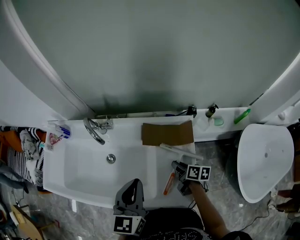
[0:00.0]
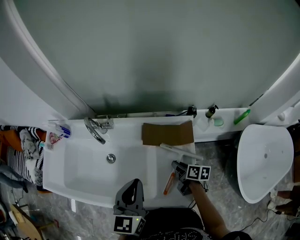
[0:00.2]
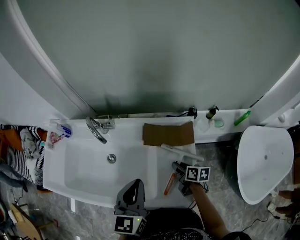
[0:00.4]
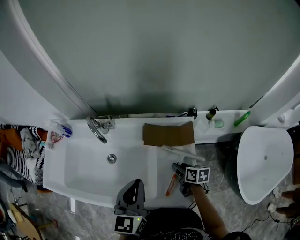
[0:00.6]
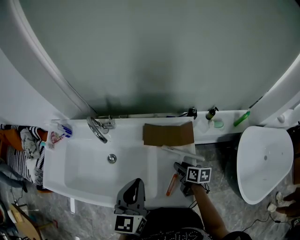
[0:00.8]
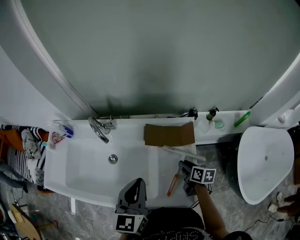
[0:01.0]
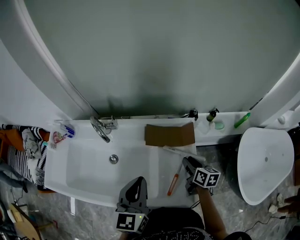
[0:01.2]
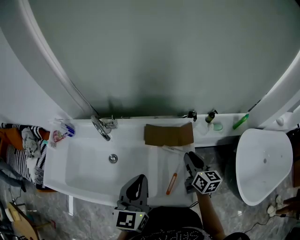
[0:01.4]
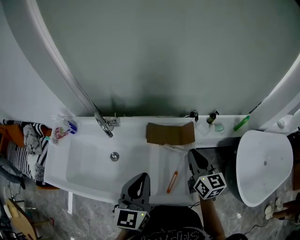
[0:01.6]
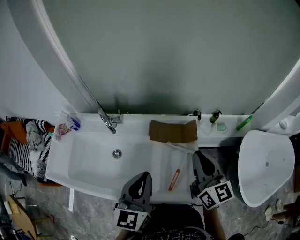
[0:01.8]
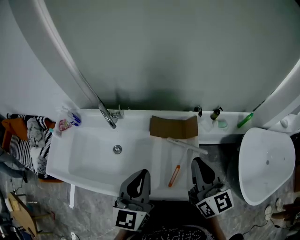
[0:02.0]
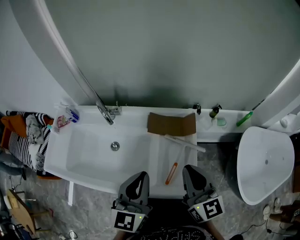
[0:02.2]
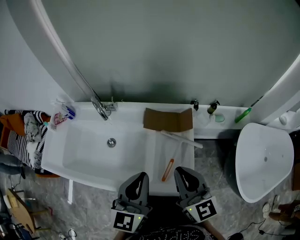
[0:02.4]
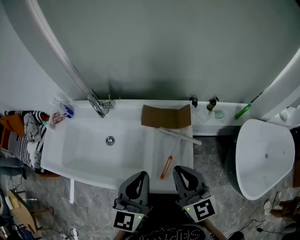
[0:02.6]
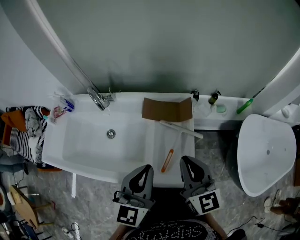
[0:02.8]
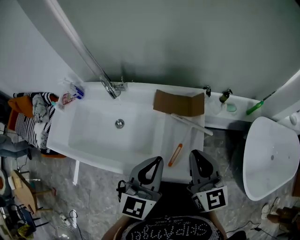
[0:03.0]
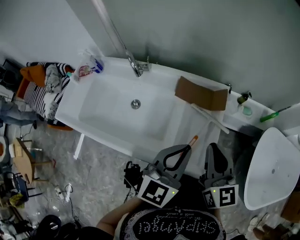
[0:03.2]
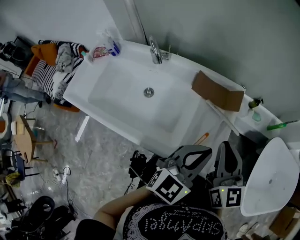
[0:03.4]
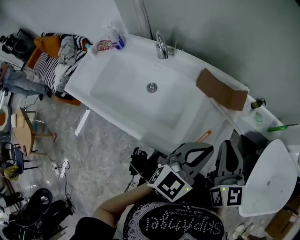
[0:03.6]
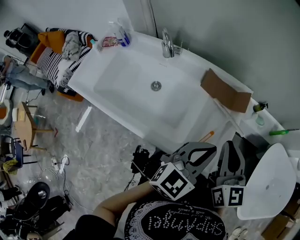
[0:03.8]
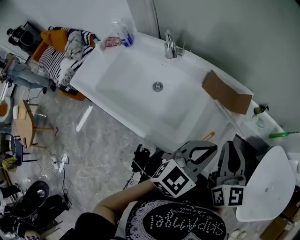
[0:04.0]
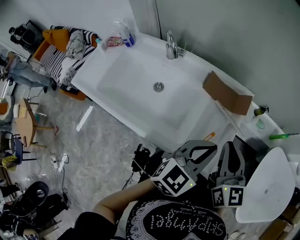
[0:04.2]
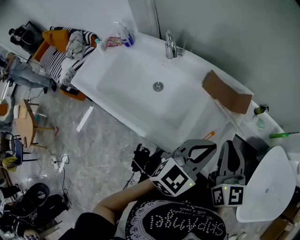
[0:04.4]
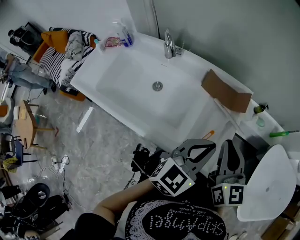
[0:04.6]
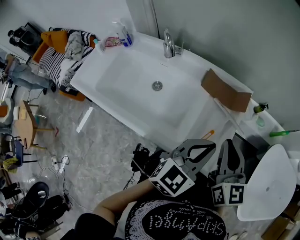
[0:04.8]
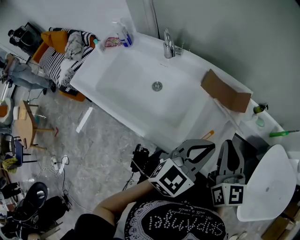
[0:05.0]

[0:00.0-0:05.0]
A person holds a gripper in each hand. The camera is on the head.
0.0 to 1.6 s: The right gripper is displaced upward by about 20 cm, and changes its angle by about 50 degrees.
1.6 to 3.4 s: The right gripper heads backward, covering some 10 cm, while the left gripper moves to the right and backward, roughly 15 cm.
3.4 to 5.0 s: The grippers make only small movements.

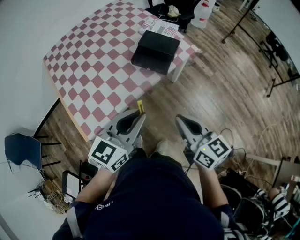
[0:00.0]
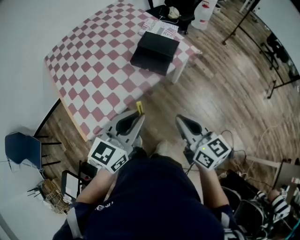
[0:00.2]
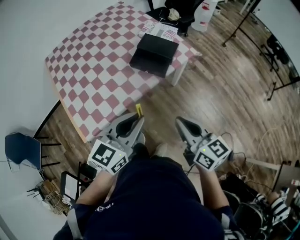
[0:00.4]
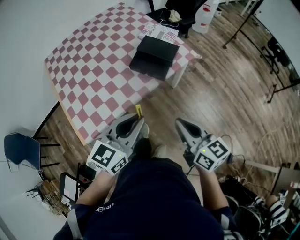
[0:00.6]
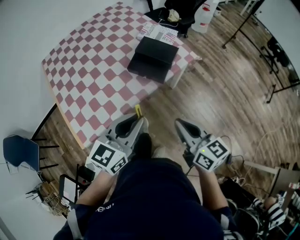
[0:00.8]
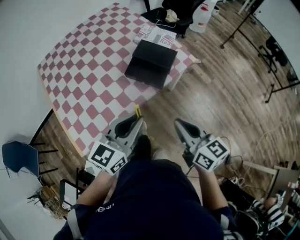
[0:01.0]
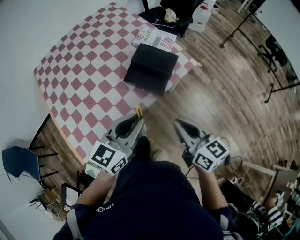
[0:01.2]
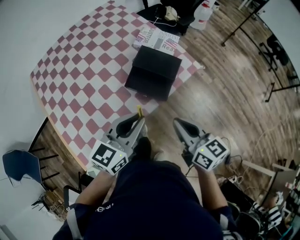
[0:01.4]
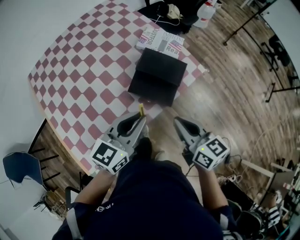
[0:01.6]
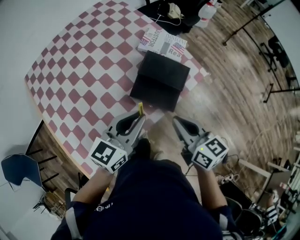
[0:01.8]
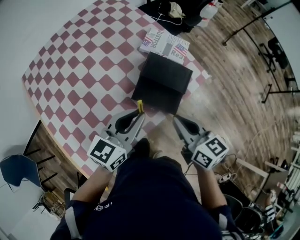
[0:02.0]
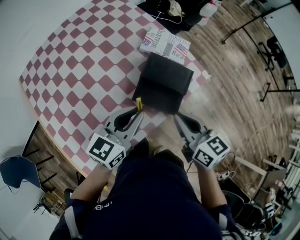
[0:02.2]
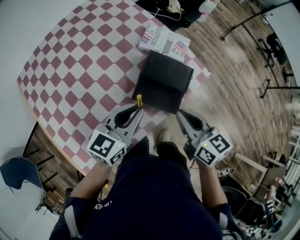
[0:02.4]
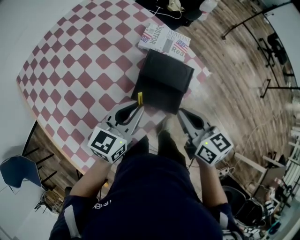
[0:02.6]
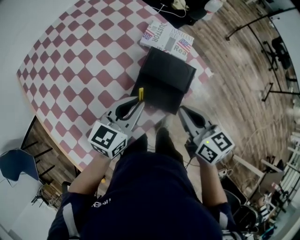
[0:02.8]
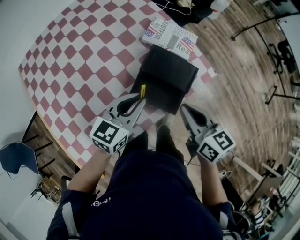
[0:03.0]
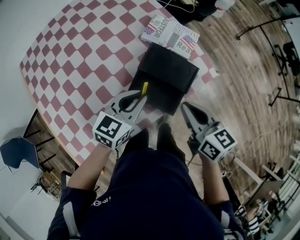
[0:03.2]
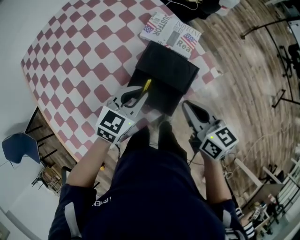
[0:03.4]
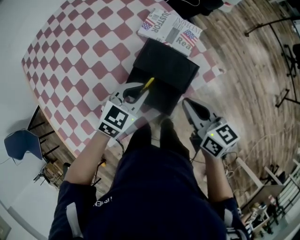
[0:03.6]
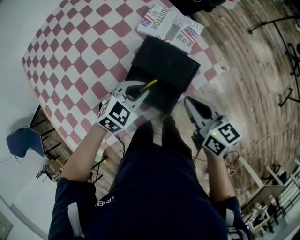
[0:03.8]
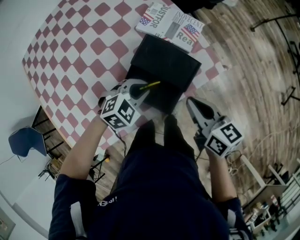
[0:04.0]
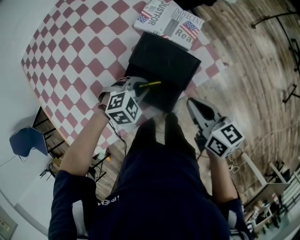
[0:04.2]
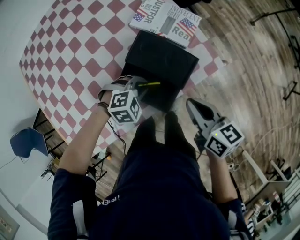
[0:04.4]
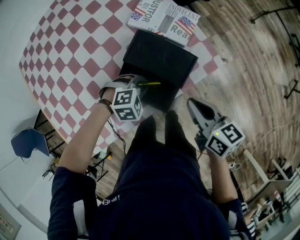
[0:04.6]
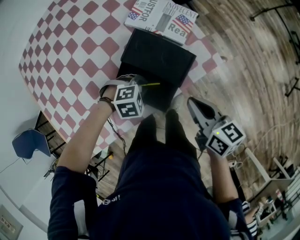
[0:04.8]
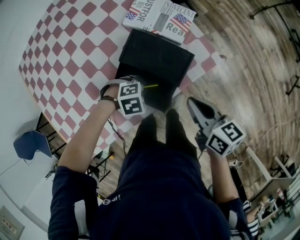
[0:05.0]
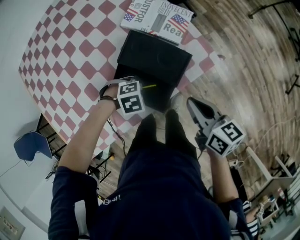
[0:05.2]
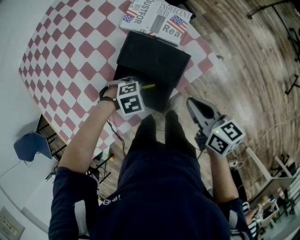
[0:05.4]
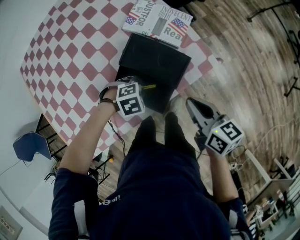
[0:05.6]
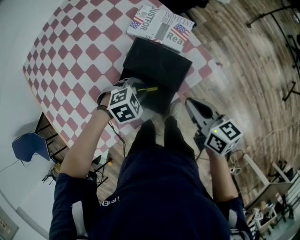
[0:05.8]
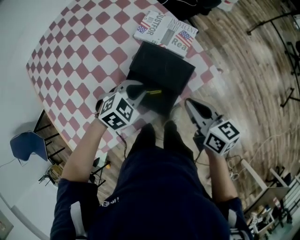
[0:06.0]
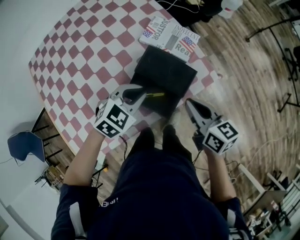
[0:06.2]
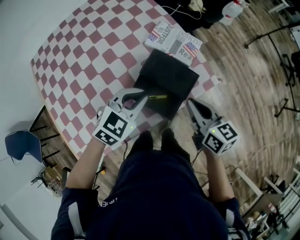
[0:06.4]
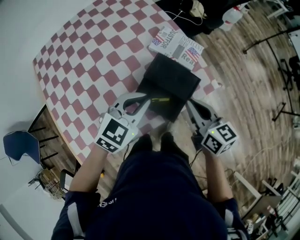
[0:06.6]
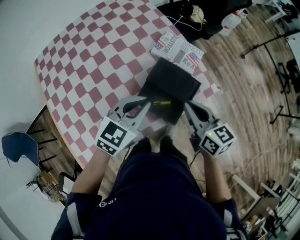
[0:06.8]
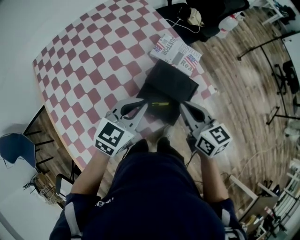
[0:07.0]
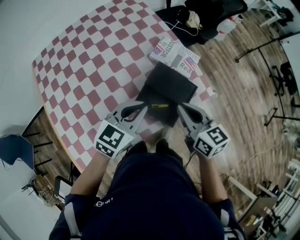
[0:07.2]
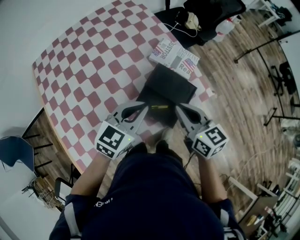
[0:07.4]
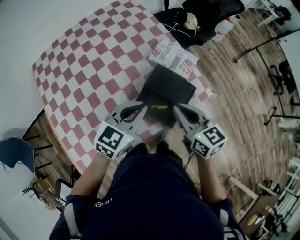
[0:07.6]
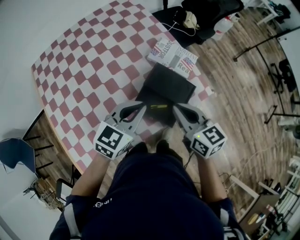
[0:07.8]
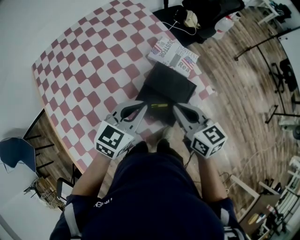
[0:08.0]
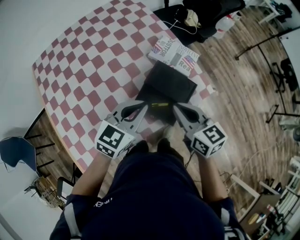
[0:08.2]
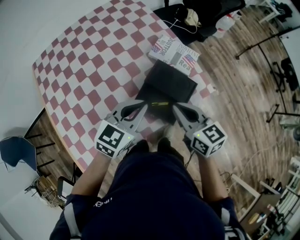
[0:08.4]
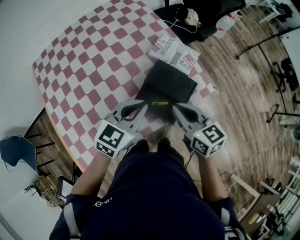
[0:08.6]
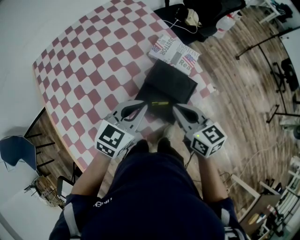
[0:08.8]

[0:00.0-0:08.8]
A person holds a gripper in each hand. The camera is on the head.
0.0 to 1.4 s: Both grippers move forward, about 20 cm.
1.4 to 3.0 s: The left gripper is displaced forward and downward by about 20 cm. The right gripper moves forward, some 15 cm.
3.0 to 4.4 s: The left gripper moves downward, some 20 cm, and tilts its fingers about 40 degrees downward. The right gripper goes some 10 cm downward and to the right.
5.8 to 7.4 s: The left gripper heads upward, covering some 20 cm, tilts its fingers approximately 50 degrees upward, and closes up; the right gripper heads to the left and upward, covering some 15 cm.
7.4 to 8.8 s: The grippers make only small movements.

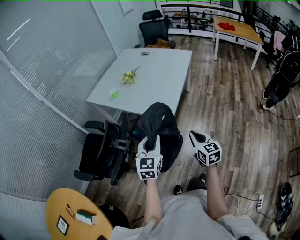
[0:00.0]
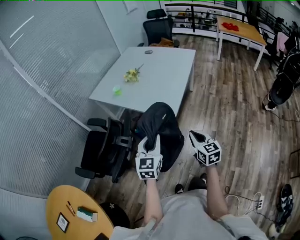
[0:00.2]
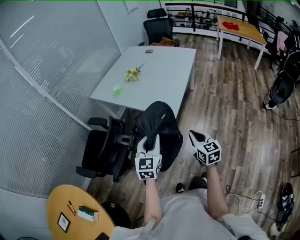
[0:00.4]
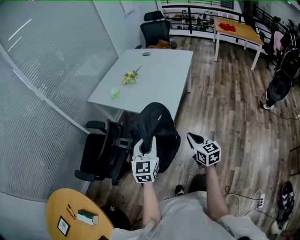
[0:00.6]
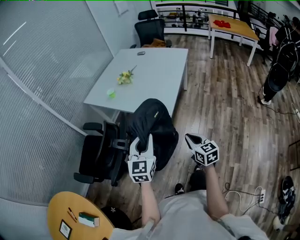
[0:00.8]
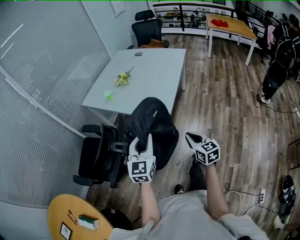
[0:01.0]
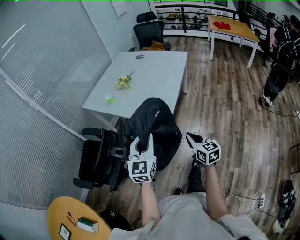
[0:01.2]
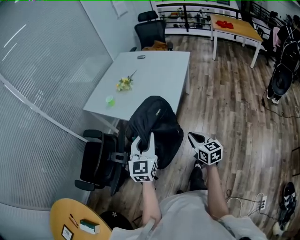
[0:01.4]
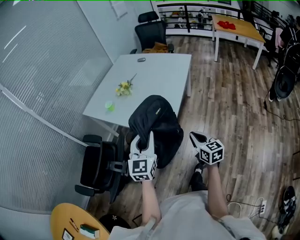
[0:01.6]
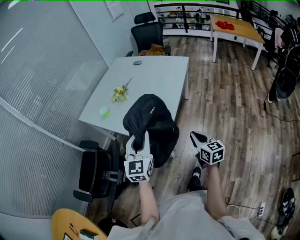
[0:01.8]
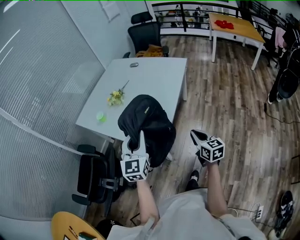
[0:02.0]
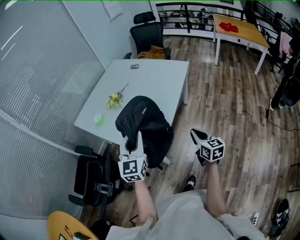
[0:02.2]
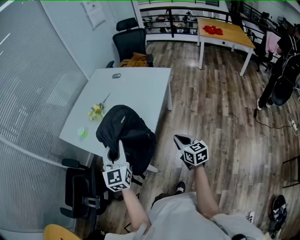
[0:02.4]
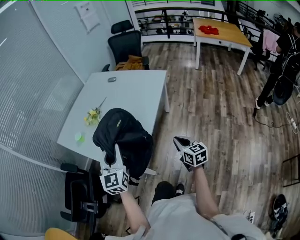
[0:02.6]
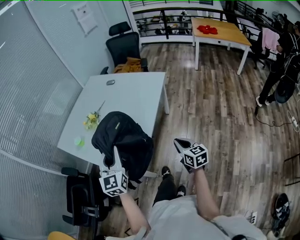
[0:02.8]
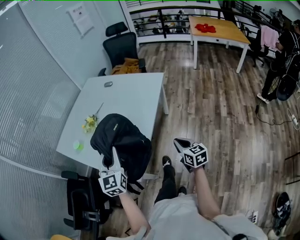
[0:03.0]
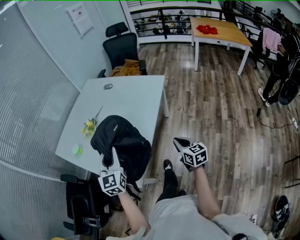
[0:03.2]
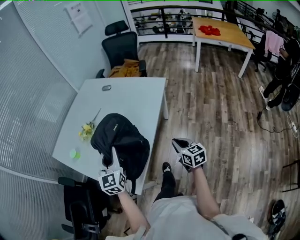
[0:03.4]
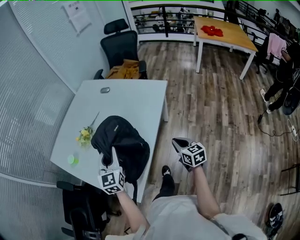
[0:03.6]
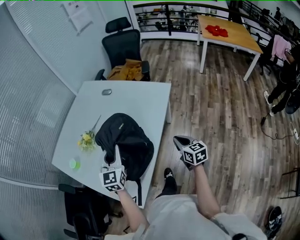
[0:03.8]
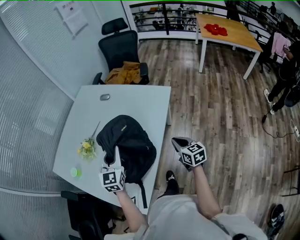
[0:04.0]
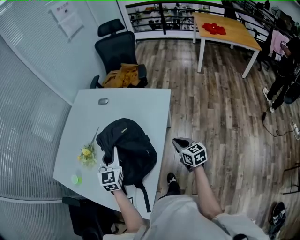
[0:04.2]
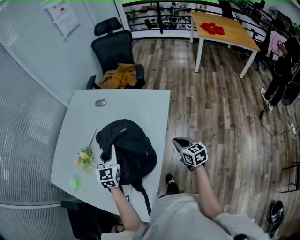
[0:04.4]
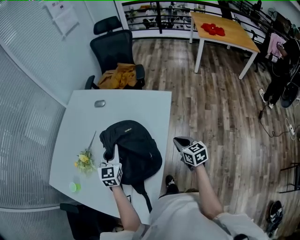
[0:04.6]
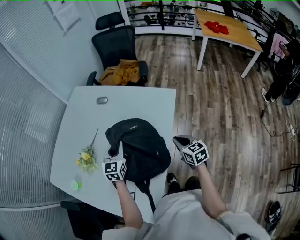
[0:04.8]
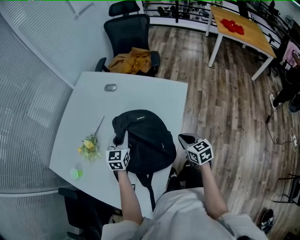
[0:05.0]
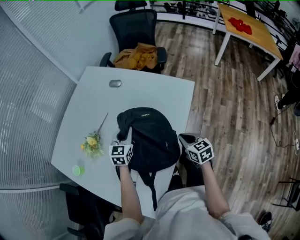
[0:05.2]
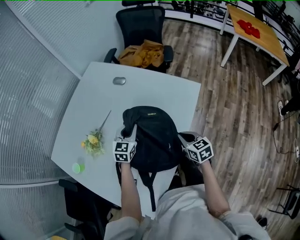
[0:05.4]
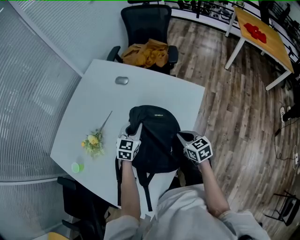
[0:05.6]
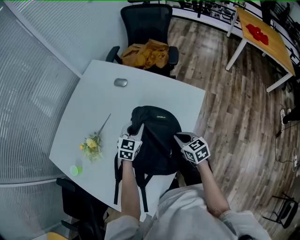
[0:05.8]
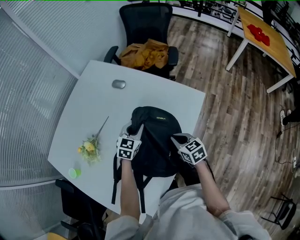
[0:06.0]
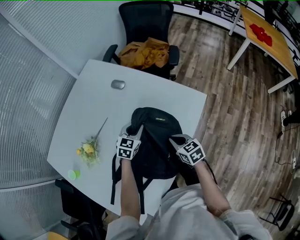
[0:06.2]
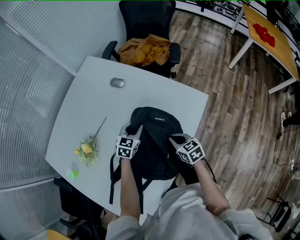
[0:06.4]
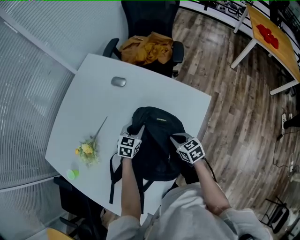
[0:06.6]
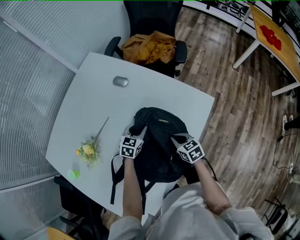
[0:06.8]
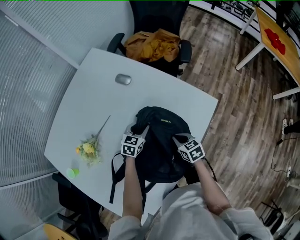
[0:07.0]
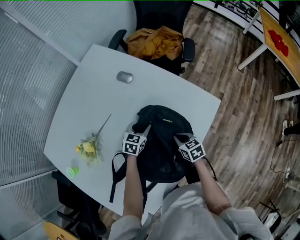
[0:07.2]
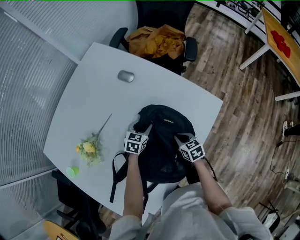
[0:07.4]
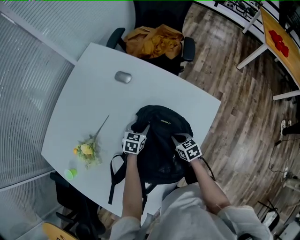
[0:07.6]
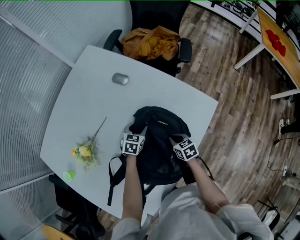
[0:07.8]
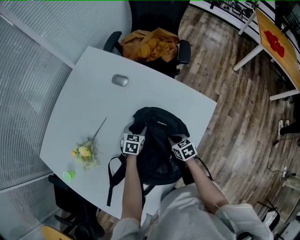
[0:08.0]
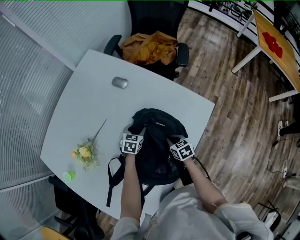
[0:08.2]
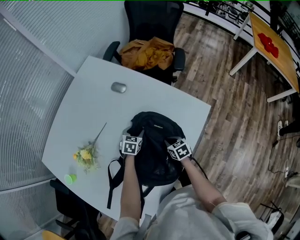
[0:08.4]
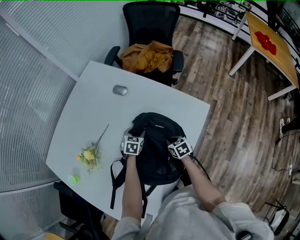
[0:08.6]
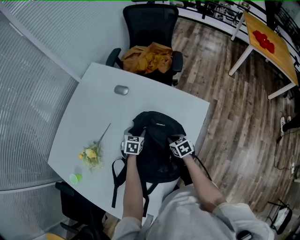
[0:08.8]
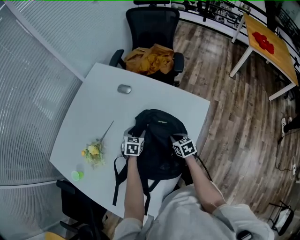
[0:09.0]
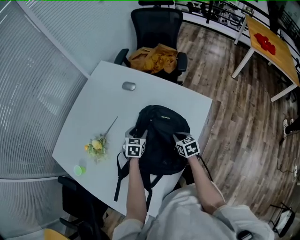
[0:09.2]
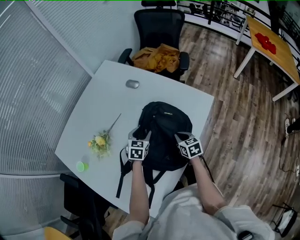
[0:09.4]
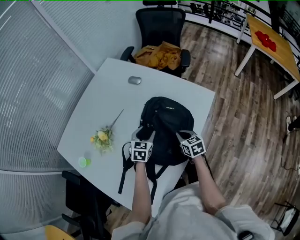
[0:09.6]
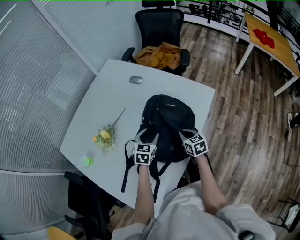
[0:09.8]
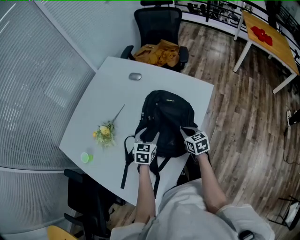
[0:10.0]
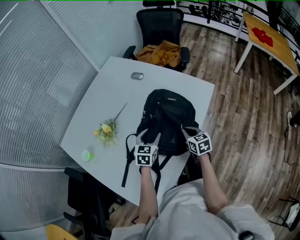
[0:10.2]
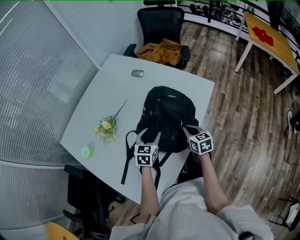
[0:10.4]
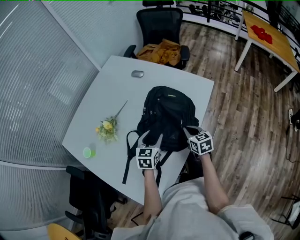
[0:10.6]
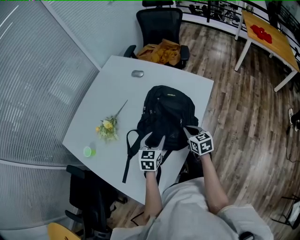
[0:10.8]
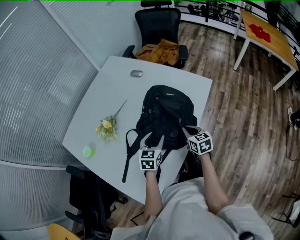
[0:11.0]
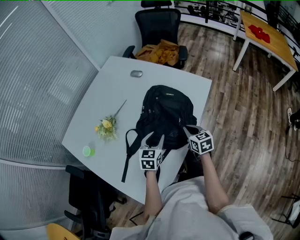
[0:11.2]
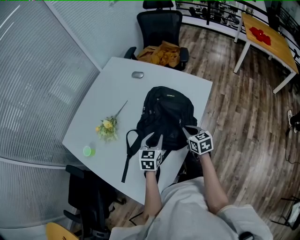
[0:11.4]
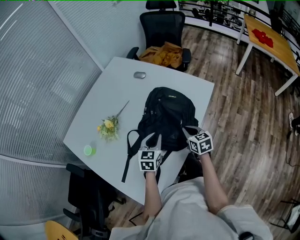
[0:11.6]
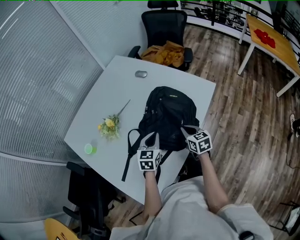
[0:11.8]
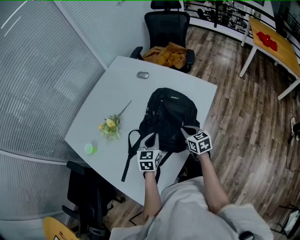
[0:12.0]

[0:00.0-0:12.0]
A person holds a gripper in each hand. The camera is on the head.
0.0 to 1.6 s: The left gripper moves forward and upward, roughly 15 cm. Meanwhile the right gripper goes roughly 15 cm forward and to the right.
1.6 to 3.0 s: The two grippers go approximately 30 cm forward and to the right.
3.0 to 4.4 s: Both grippers move forward, roughly 35 cm.
4.4 to 6.0 s: The right gripper goes approximately 20 cm forward, to the left and downward, and changes its angle by some 20 degrees, while the left gripper shifts about 25 cm forward and downward.
6.0 to 7.6 s: Both grippers travel together downward and forward, about 15 cm. The left gripper rotates roughly 20 degrees, and opens its fingers.
7.6 to 9.0 s: The grippers both shift upward by about 5 cm.
9.0 to 10.4 s: The two grippers go some 20 cm backward and upward.
10.4 to 12.0 s: The left gripper closes up.
